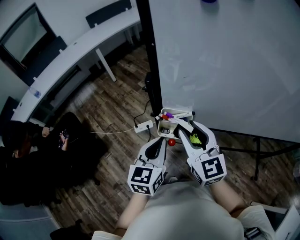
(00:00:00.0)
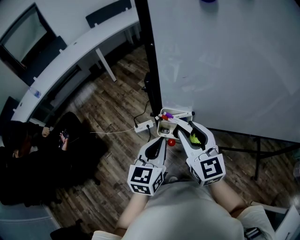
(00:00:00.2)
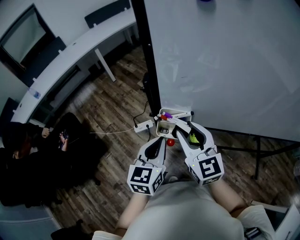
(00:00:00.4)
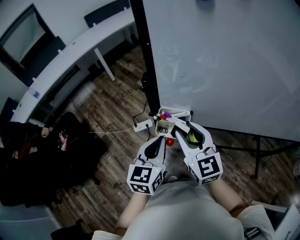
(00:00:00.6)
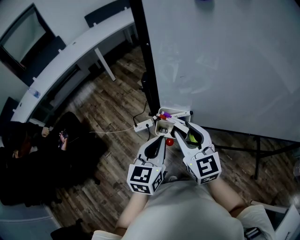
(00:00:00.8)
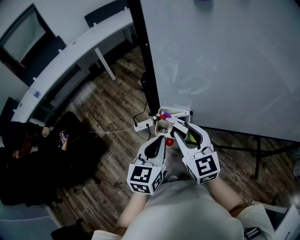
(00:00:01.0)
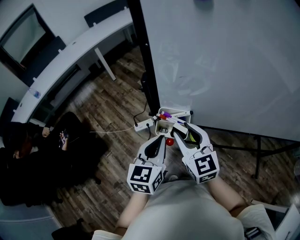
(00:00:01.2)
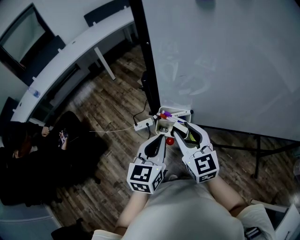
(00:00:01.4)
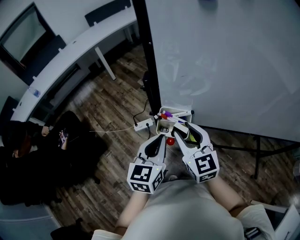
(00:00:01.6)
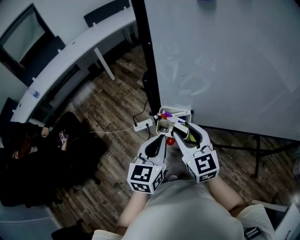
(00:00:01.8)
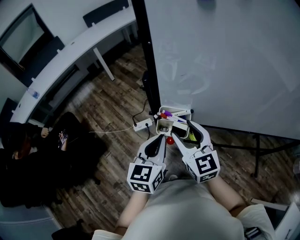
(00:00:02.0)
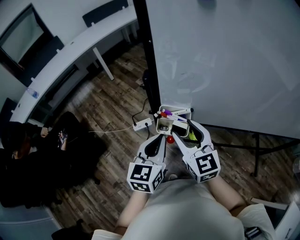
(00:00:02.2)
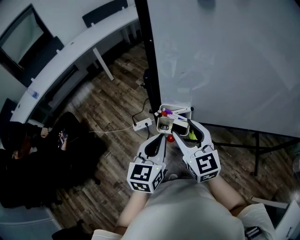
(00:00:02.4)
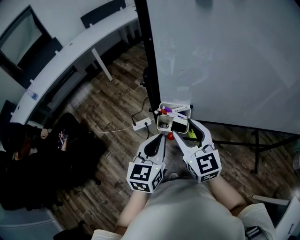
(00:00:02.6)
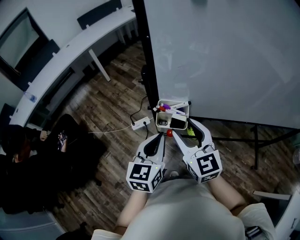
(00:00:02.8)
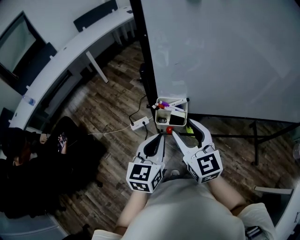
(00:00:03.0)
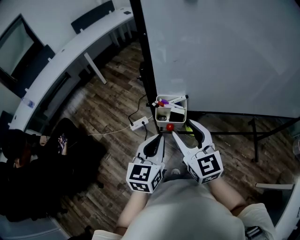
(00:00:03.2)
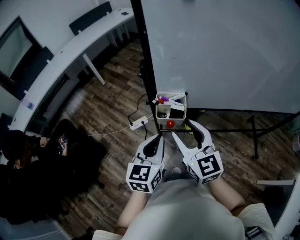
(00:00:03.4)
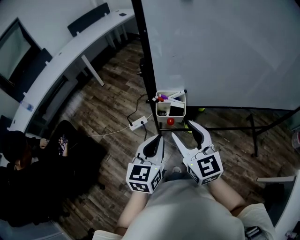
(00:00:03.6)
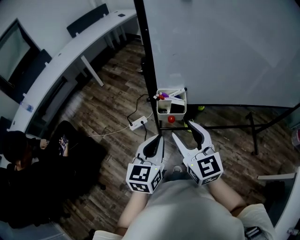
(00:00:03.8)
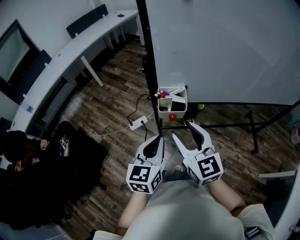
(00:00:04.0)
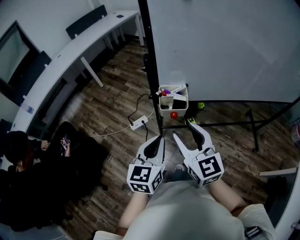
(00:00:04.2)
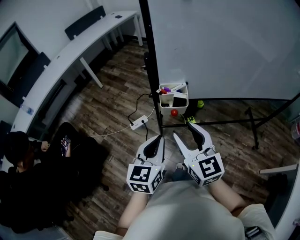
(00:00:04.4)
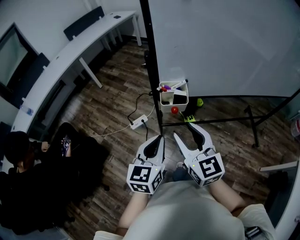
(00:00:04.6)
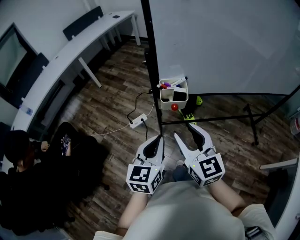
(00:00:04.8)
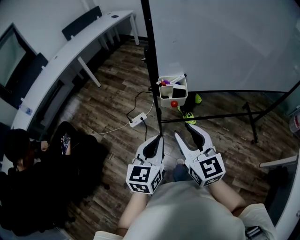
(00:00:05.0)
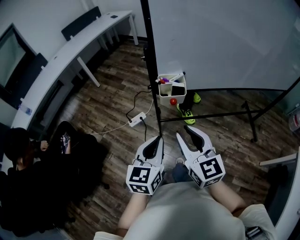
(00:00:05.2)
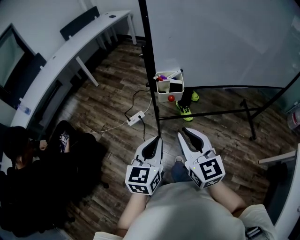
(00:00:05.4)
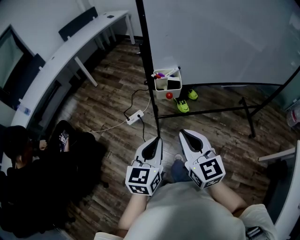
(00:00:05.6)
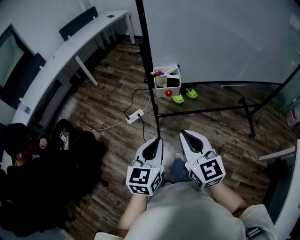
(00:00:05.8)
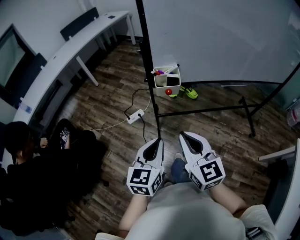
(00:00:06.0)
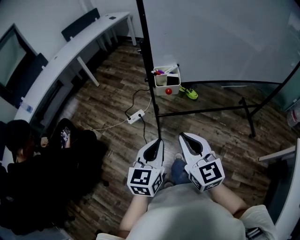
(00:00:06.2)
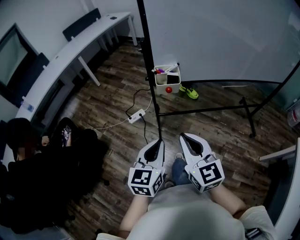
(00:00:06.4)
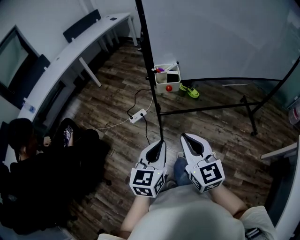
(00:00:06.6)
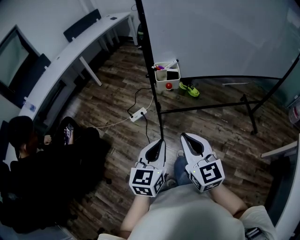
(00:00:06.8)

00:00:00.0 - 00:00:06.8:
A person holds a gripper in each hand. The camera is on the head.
00:00:00.0 - 00:00:02.8: The grippers make only small movements.
00:00:02.8 - 00:00:04.0: Both grippers travel together backward, about 10 cm.
00:00:04.0 - 00:00:05.4: Both grippers move backward, approximately 10 cm. The right gripper closes up.
00:00:05.4 - 00:00:06.8: Both grippers move backward, roughly 10 cm.

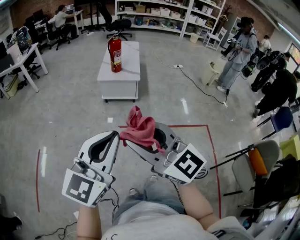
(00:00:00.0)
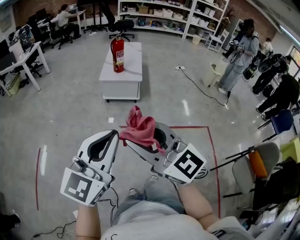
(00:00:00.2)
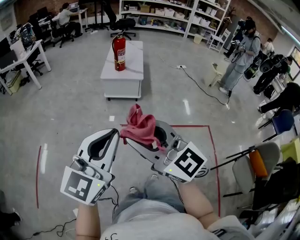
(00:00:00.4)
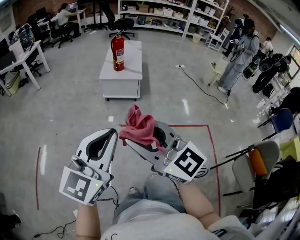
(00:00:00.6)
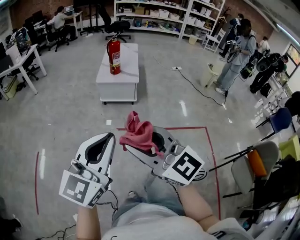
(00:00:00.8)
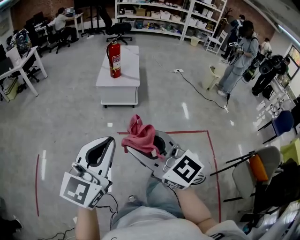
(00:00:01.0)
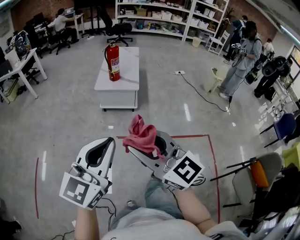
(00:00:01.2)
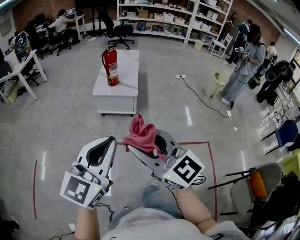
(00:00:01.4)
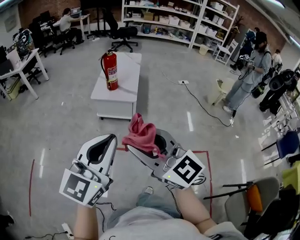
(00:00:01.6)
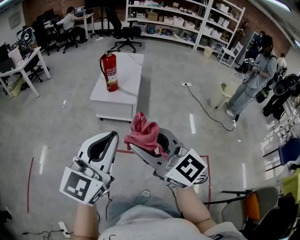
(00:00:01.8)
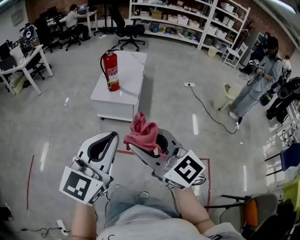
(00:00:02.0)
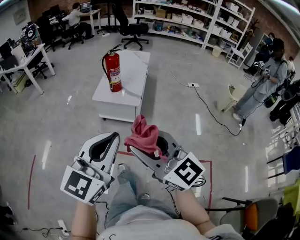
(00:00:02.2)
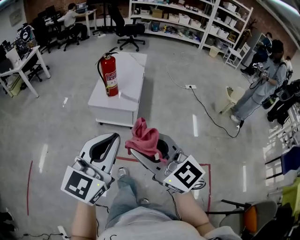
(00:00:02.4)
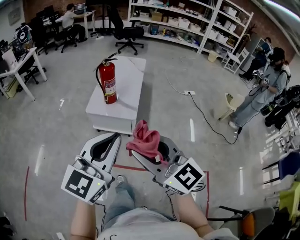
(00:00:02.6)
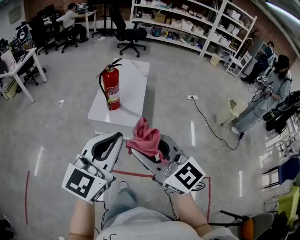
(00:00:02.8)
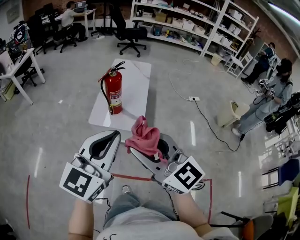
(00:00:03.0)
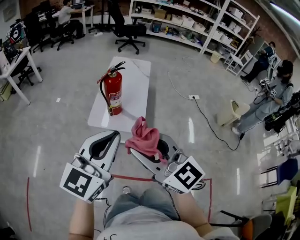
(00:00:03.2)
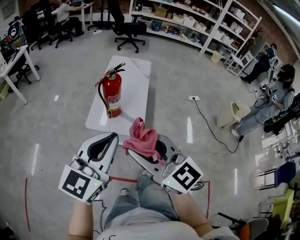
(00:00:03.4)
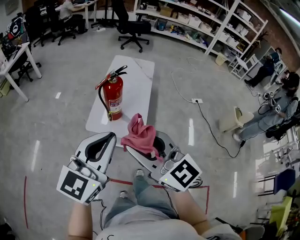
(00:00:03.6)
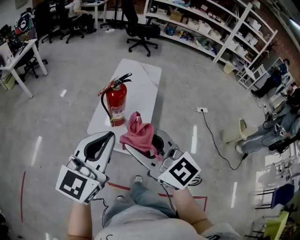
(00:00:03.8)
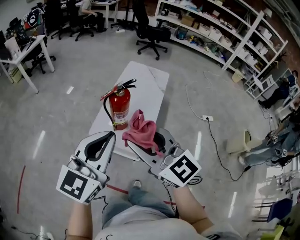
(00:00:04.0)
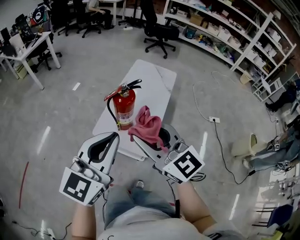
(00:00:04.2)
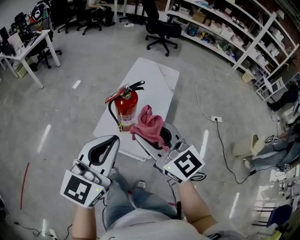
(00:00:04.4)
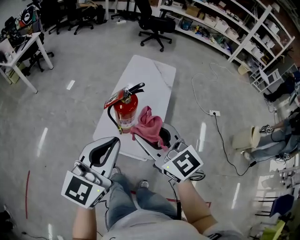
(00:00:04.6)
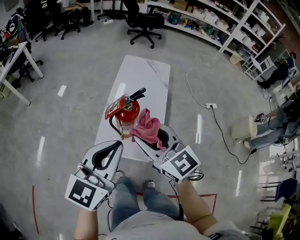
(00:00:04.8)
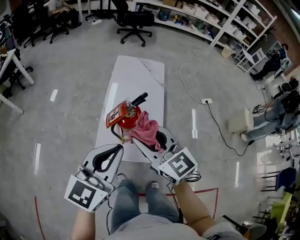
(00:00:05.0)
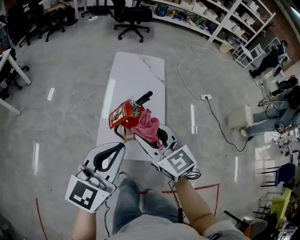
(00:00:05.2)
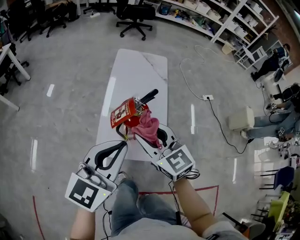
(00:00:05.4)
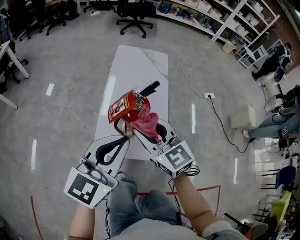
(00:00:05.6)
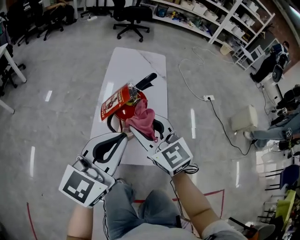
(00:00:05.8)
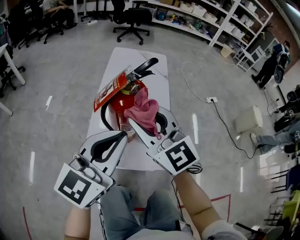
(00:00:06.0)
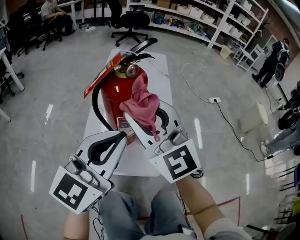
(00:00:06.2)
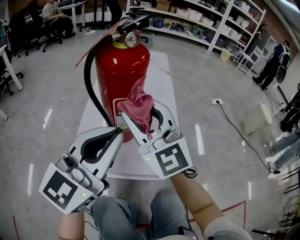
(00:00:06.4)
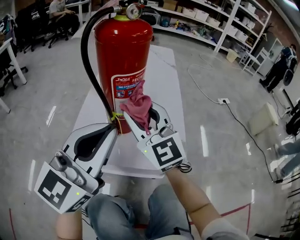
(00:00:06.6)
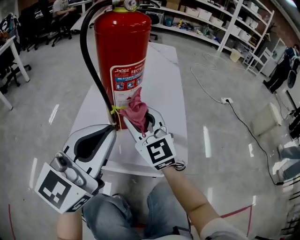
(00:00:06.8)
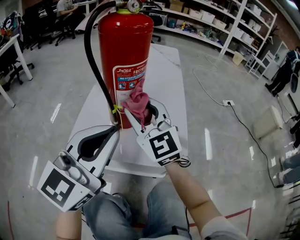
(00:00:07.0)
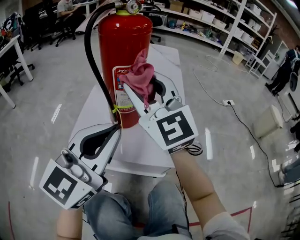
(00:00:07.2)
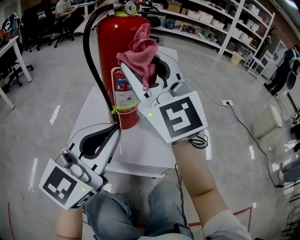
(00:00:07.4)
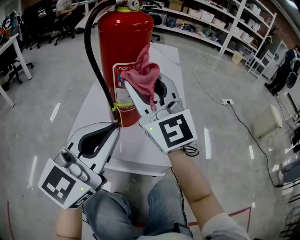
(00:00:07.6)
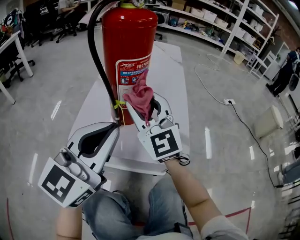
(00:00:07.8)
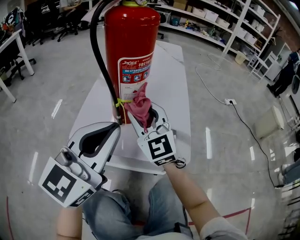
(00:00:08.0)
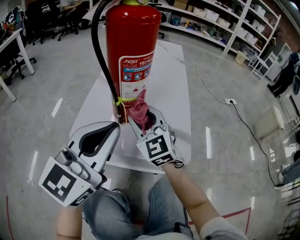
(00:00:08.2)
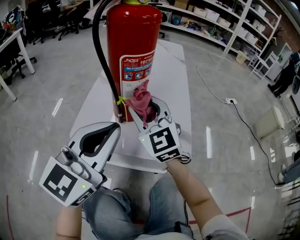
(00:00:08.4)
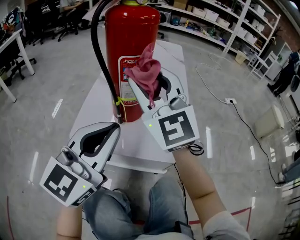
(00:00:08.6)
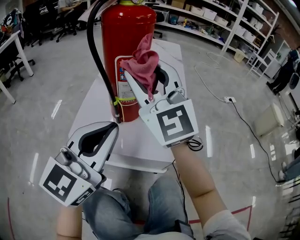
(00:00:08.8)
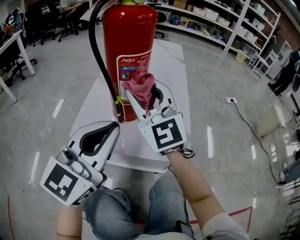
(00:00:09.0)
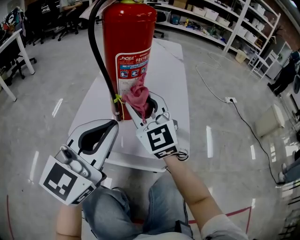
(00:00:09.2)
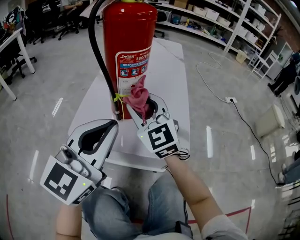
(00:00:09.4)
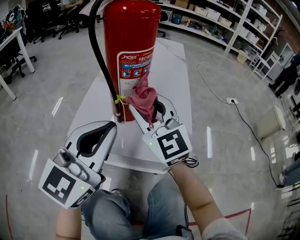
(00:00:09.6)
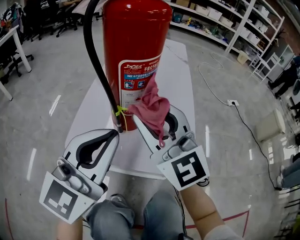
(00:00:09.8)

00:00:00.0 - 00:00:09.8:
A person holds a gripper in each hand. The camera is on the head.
00:00:00.0 - 00:00:01.4: The two grippers go approximately 20 cm forward and to the right.
00:00:01.4 - 00:00:02.8: The two grippers go approximately 35 cm forward.
00:00:02.8 - 00:00:04.2: Both grippers travel together forward, approximately 35 cm.
00:00:04.2 - 00:00:05.6: Both grippers travel together forward, downward and to the left, some 25 cm. The left gripper turns by some 20 degrees; the right gripper swivels about 30 degrees.
00:00:05.6 - 00:00:07.0: Both grippers travel together downward, about 30 cm. The right gripper rotates approximately 30 degrees.
00:00:07.0 - 00:00:08.4: The right gripper swings up and down, roughly 25 cm each way, with 2 reversals.
00:00:08.4 - 00:00:09.8: The right gripper swings up and down, some 15 cm each way, with 2 reversals.

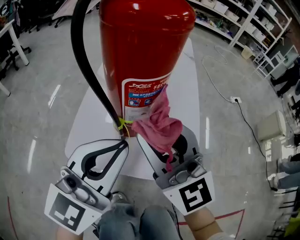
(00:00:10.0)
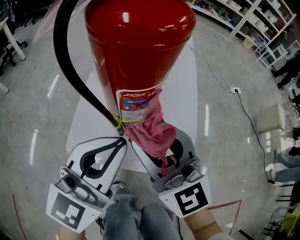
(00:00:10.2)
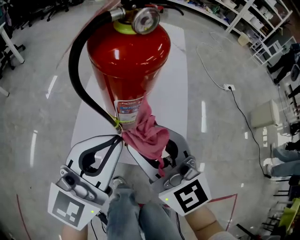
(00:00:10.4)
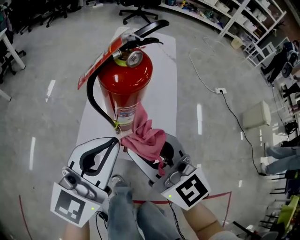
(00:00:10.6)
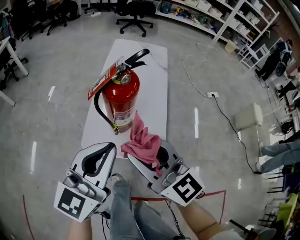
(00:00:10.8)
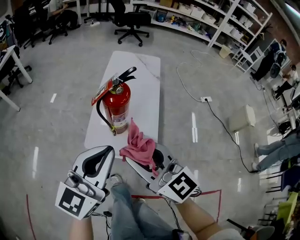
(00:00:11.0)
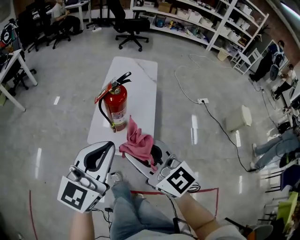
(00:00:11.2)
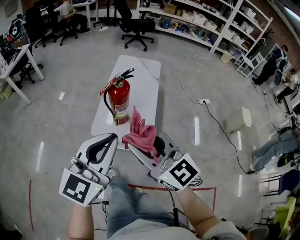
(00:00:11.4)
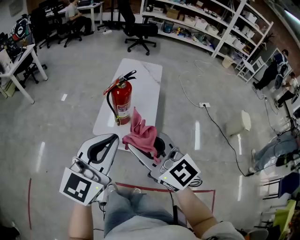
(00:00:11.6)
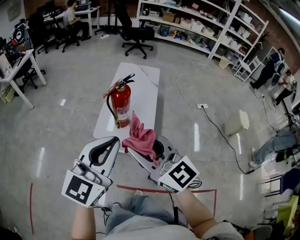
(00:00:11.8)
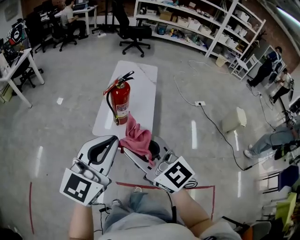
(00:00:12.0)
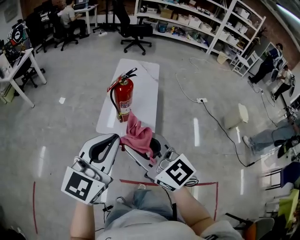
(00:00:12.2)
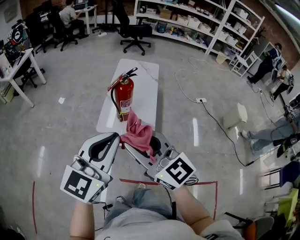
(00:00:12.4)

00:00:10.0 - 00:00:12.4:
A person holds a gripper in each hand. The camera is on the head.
00:00:10.0 - 00:00:11.2: Both grippers travel together upward and backward, approximately 40 cm. The right gripper rotates some 20 degrees.
00:00:11.2 - 00:00:12.4: The grippers both shift backward and upward by about 15 cm.

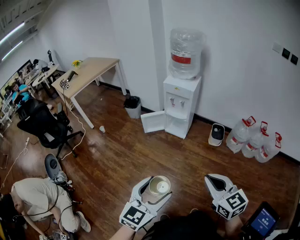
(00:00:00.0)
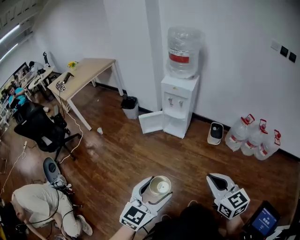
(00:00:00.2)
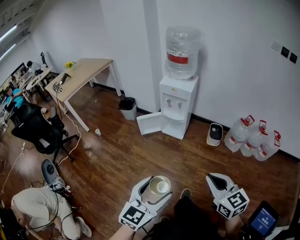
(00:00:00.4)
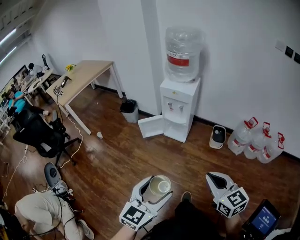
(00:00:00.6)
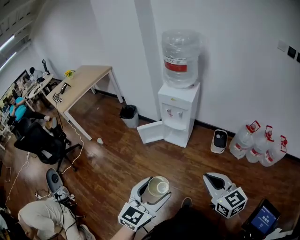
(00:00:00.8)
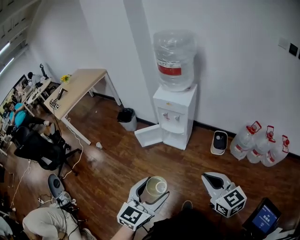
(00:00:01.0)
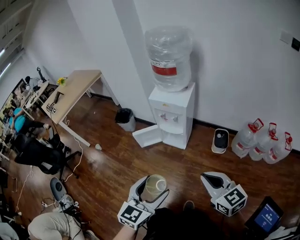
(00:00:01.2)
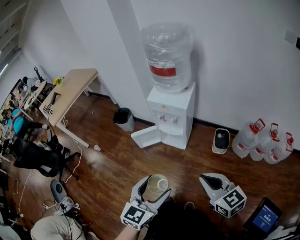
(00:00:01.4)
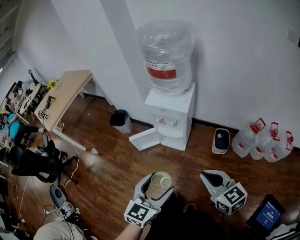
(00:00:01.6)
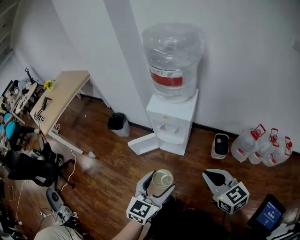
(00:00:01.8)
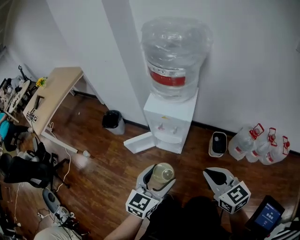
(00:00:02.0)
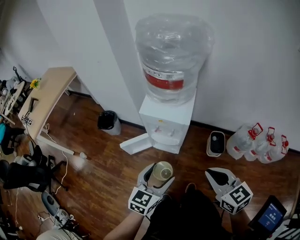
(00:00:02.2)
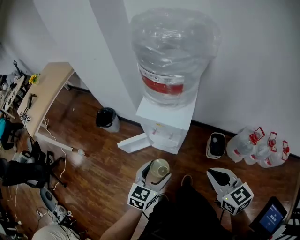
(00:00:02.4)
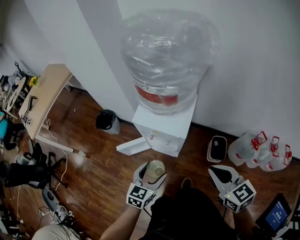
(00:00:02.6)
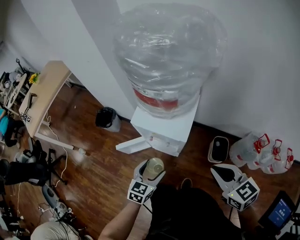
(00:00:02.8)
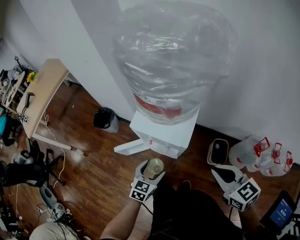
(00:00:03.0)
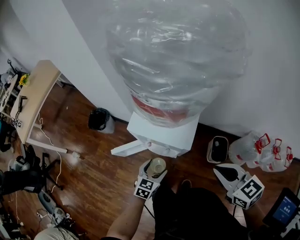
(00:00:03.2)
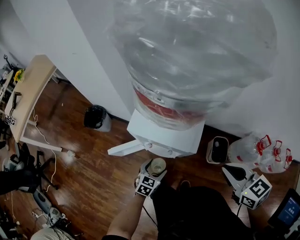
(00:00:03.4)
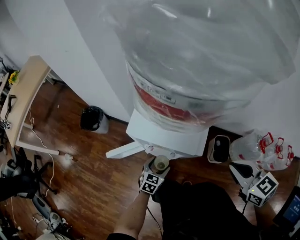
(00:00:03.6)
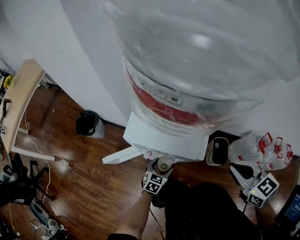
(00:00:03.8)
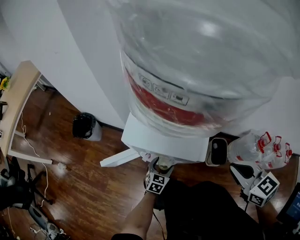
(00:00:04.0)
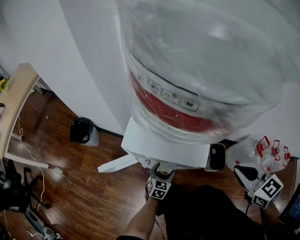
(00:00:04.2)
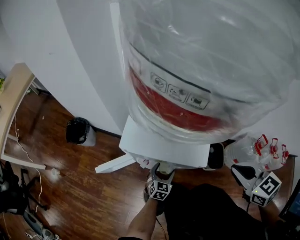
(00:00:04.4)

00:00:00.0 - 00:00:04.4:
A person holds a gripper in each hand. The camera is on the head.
00:00:00.0 - 00:00:01.4: Both grippers move forward, some 35 cm.
00:00:01.4 - 00:00:03.0: The left gripper moves forward and downward, approximately 50 cm. The right gripper is displaced forward by some 35 cm.
00:00:03.0 - 00:00:04.4: The right gripper is displaced downward and forward by approximately 15 cm. Meanwhile the left gripper is displaced downward and forward by some 30 cm.
